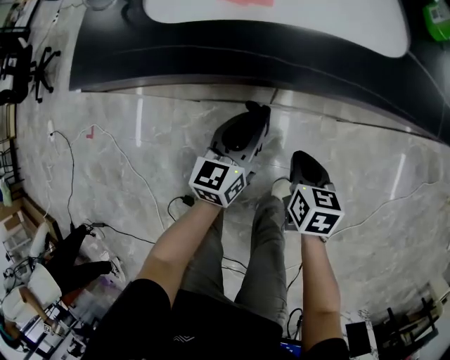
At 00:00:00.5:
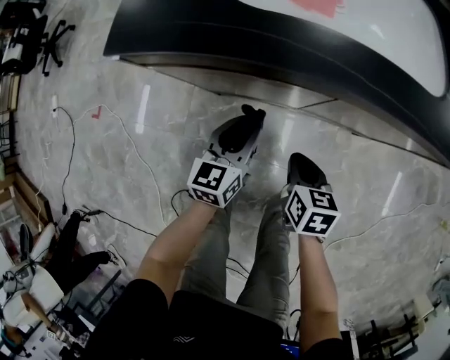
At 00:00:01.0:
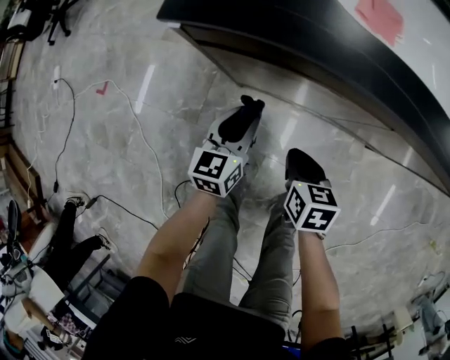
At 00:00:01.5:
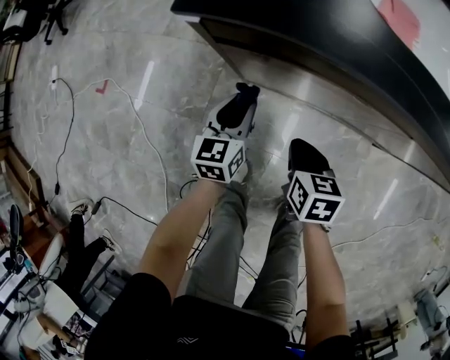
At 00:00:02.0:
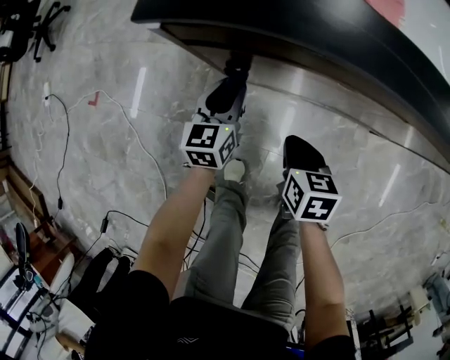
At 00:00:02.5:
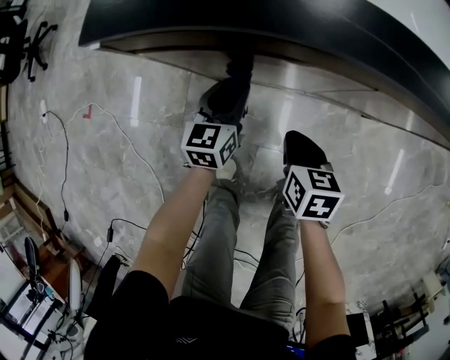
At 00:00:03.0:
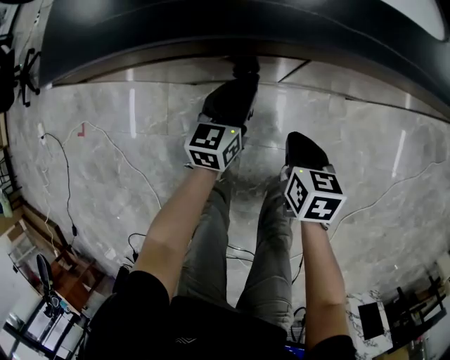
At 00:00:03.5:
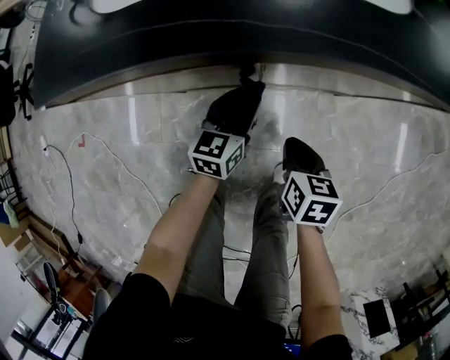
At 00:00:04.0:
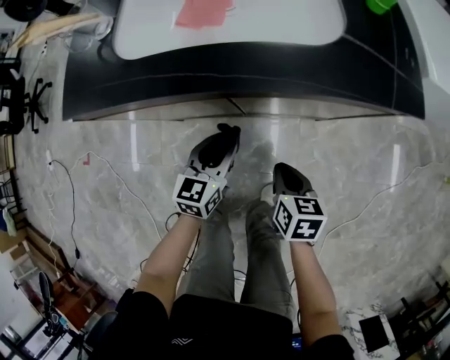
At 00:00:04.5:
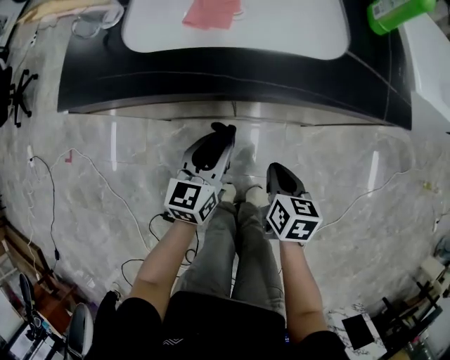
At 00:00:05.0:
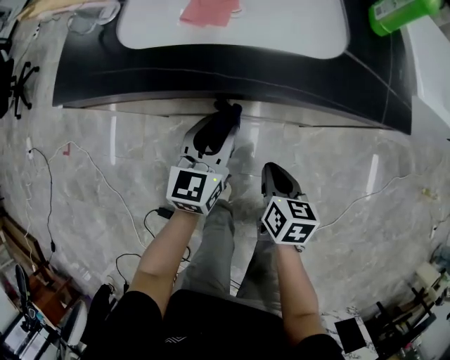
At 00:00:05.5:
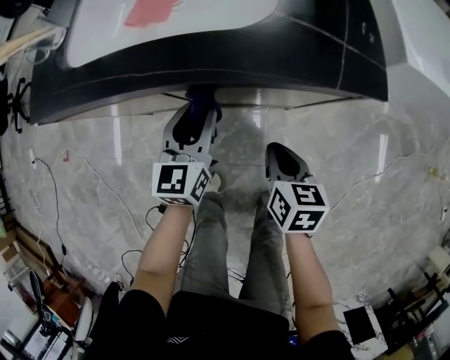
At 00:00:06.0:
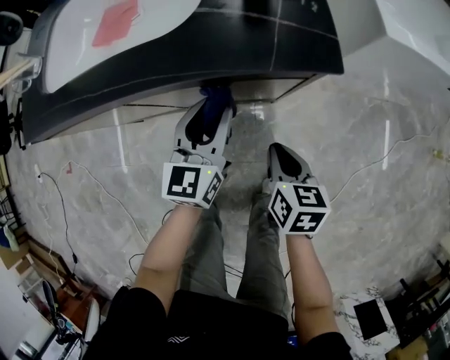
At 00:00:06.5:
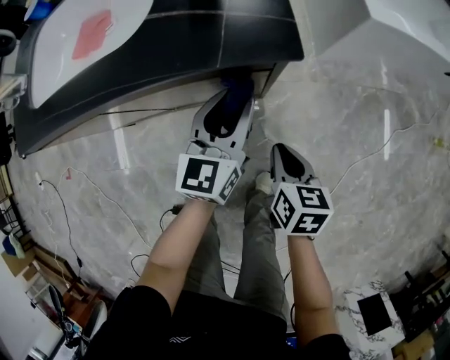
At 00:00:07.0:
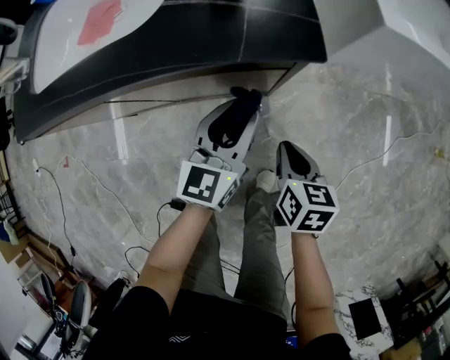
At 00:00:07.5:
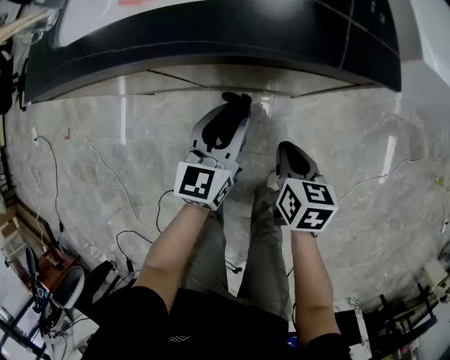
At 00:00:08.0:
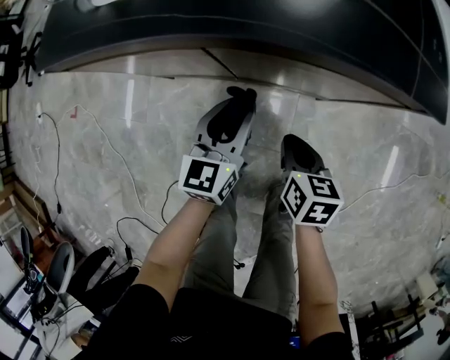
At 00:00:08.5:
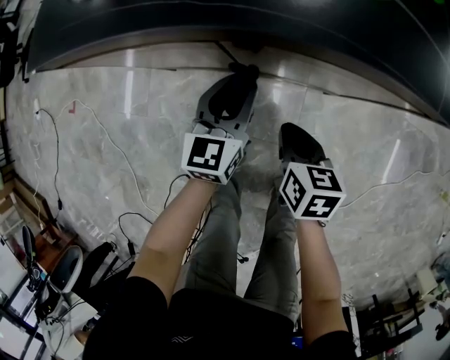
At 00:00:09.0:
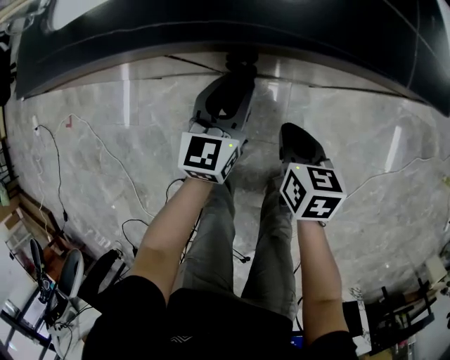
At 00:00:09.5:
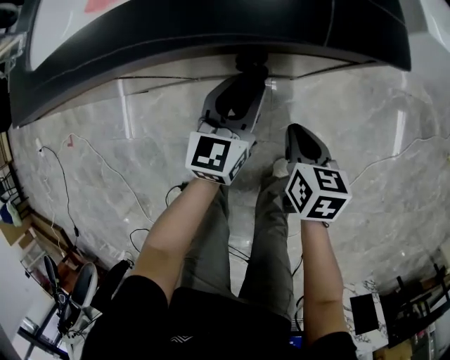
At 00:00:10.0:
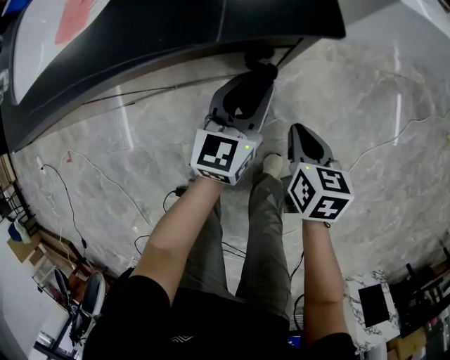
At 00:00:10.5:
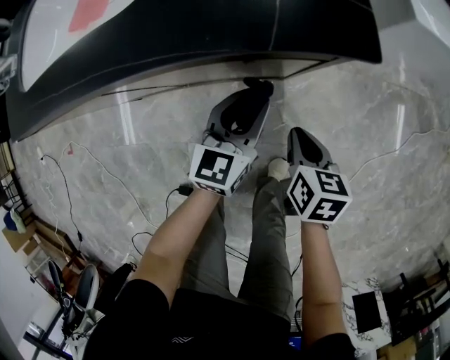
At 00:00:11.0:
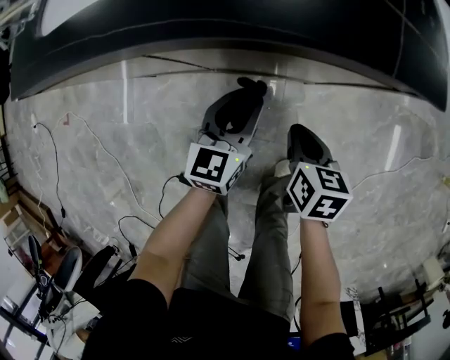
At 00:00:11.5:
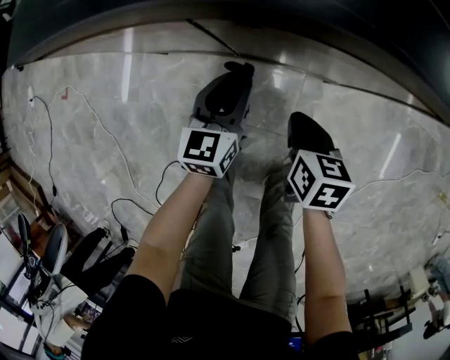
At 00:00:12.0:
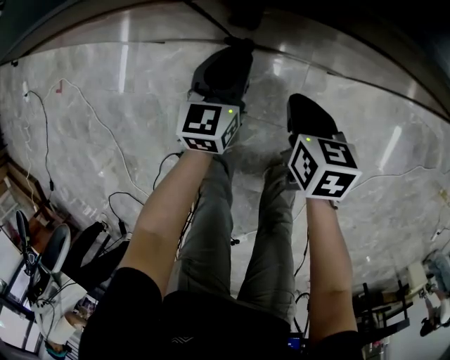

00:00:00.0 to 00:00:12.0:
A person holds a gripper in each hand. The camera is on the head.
00:00:00.0 to 00:00:02.0: Both grippers move to the left, approximately 25 cm.
00:00:02.0 to 00:00:04.0: Both grippers move to the right, about 30 cm. The left gripper swivels some 20 degrees.
00:00:04.0 to 00:00:06.0: Both grippers move to the right, roughly 20 cm.
00:00:06.0 to 00:00:08.0: The left gripper moves to the left and downward, some 15 cm, while the right gripper moves to the left, roughly 15 cm.
00:00:08.0 to 00:00:10.0: Both grippers move to the right, roughly 25 cm.
00:00:10.0 to 00:00:12.0: The grippers both shift to the left by approximately 25 cm. The right gripper swivels about 20 degrees, while the left gripper rotates roughly 20 degrees.

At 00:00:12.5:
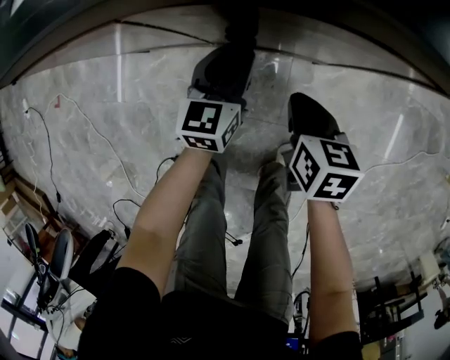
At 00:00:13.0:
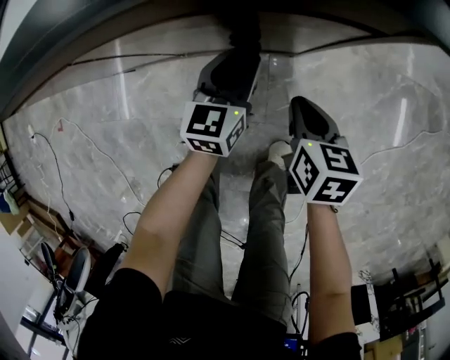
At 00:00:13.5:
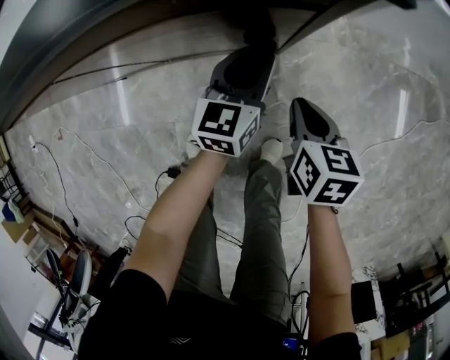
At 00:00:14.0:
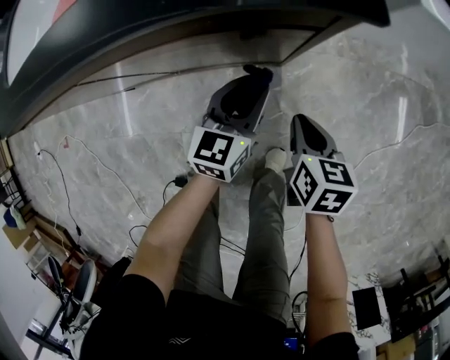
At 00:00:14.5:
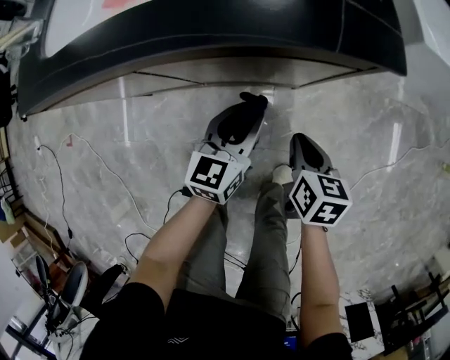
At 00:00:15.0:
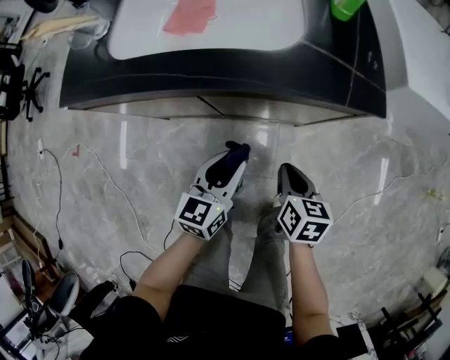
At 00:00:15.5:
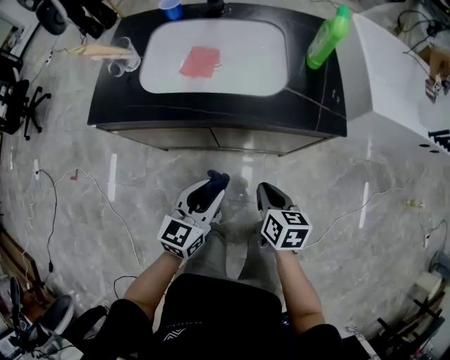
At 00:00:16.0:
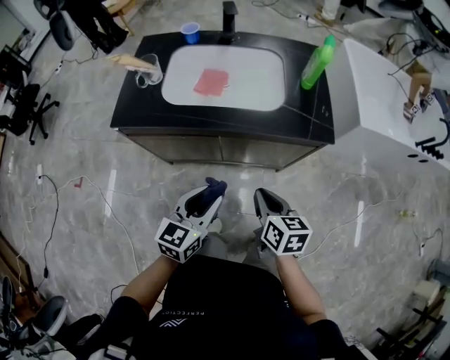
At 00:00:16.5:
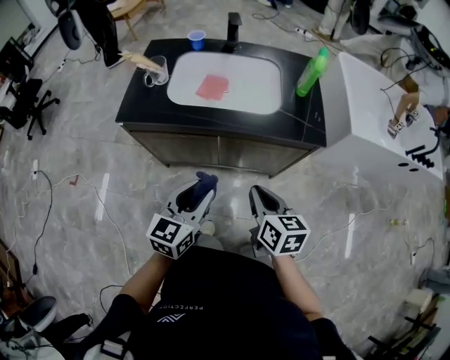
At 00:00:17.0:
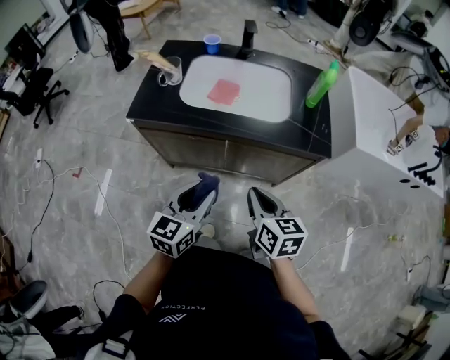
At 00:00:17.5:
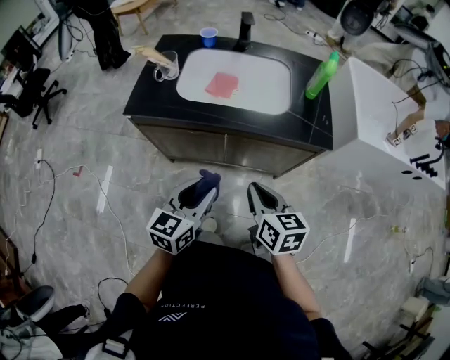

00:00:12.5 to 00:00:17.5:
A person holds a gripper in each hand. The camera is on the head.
00:00:12.5 to 00:00:15.0: The right gripper heads upward, covering approximately 15 cm, and moves about 15 cm to the right and comes back; the left gripper goes some 20 cm upward and backward, and travels to the right and back again, some 20 cm each way.
00:00:15.0 to 00:00:17.5: Both grippers travel together upward and to the left, roughly 25 cm. The right gripper swivels some 20 degrees.

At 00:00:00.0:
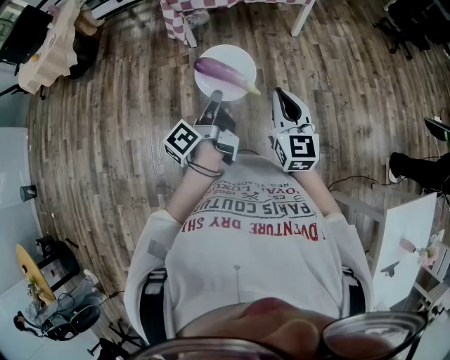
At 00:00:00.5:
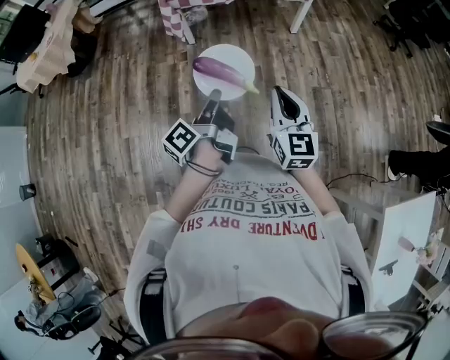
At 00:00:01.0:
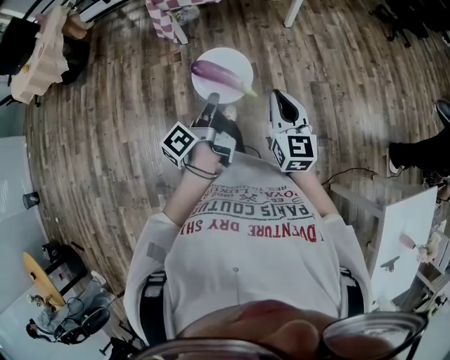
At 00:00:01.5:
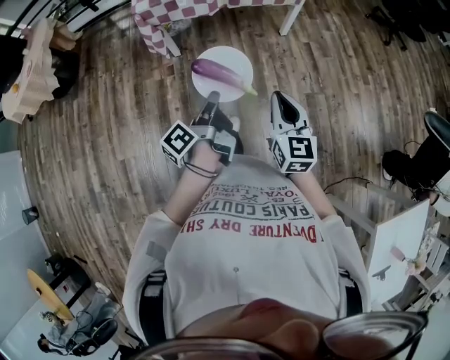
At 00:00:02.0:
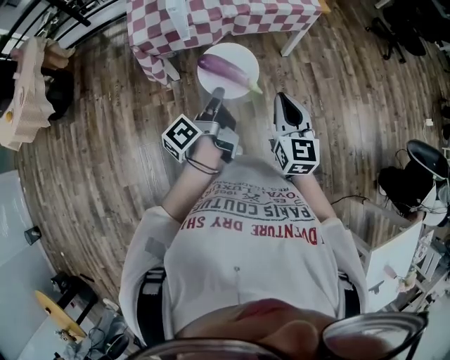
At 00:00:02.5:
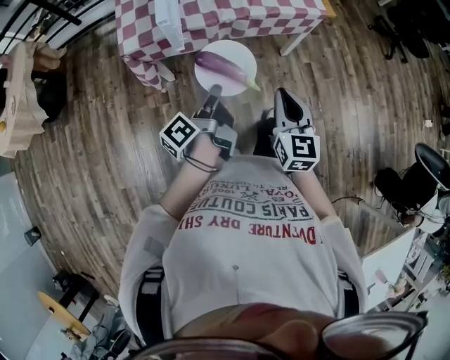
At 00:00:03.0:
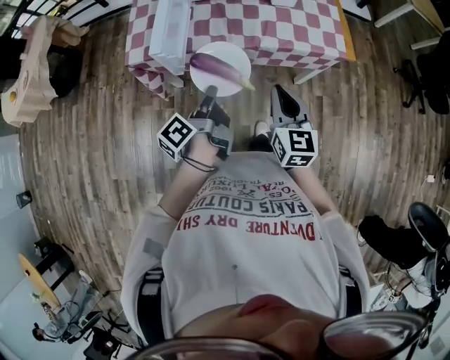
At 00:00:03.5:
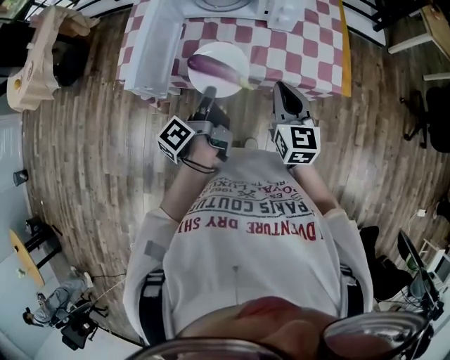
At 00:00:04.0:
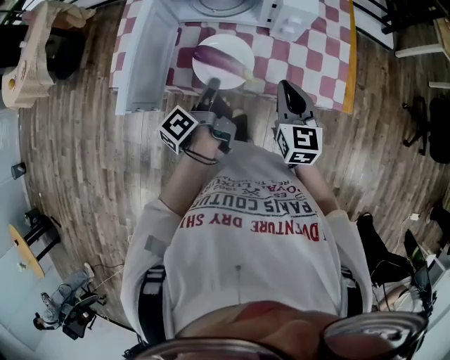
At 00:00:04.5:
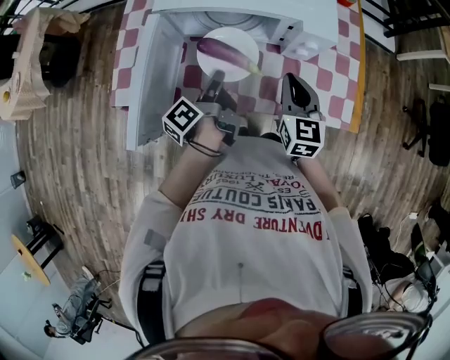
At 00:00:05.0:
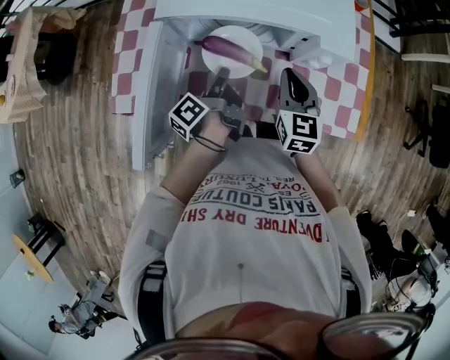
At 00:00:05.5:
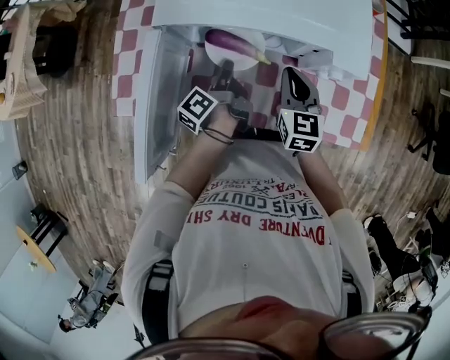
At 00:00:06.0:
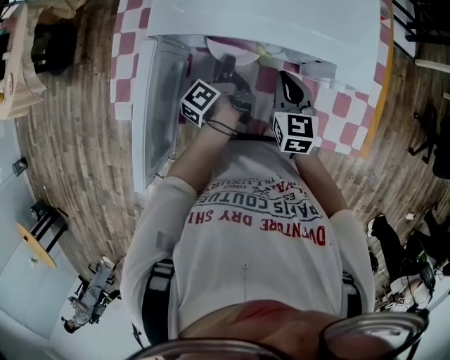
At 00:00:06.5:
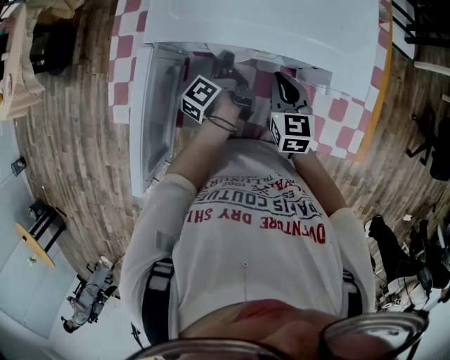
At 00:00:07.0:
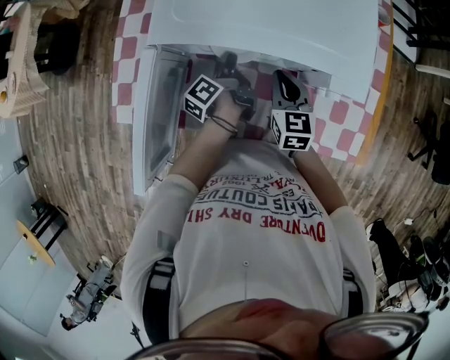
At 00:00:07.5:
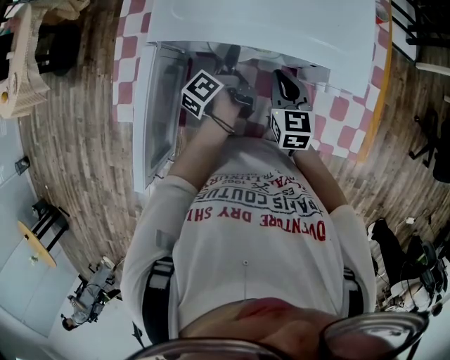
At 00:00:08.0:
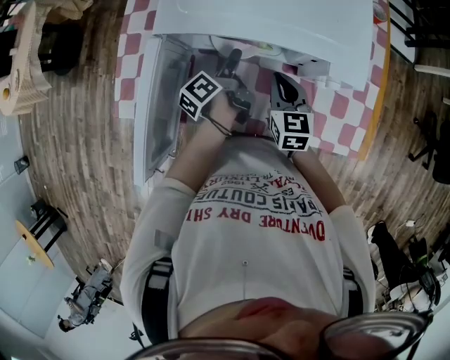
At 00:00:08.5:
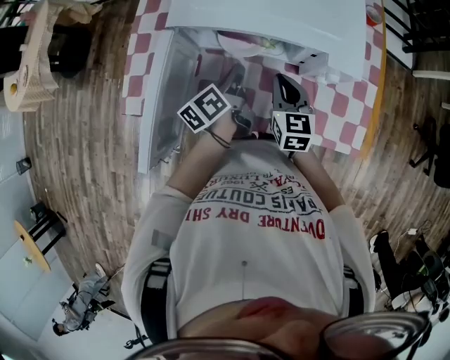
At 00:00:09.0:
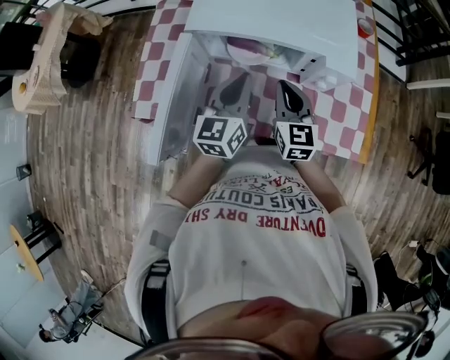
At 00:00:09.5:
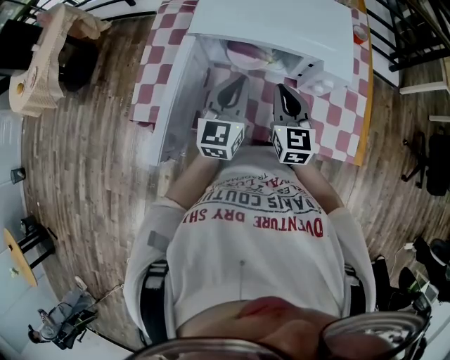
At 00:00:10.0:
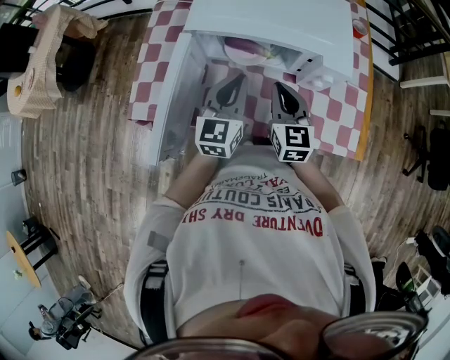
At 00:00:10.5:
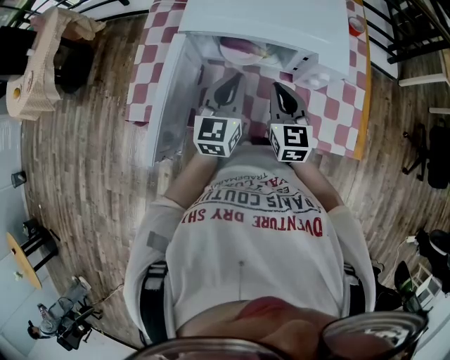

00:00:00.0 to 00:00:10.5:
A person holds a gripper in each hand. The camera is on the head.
00:00:00.0 to 00:00:02.0: The right gripper moves about 40 cm.
00:00:02.0 to 00:00:04.0: The right gripper shifts by about 50 cm, and turns by approximately 20 degrees.
00:00:04.0 to 00:00:06.5: The right gripper shifts by roughly 25 cm.
00:00:06.5 to 00:00:08.5: The right gripper ends up approximately 5 cm from where it was.
00:00:08.5 to 00:00:10.5: The right gripper goes roughly 5 cm upward.
